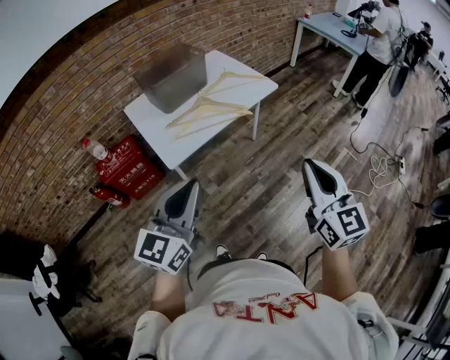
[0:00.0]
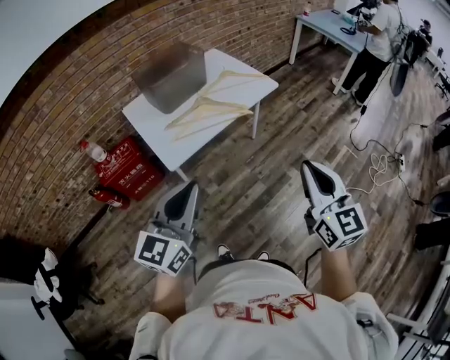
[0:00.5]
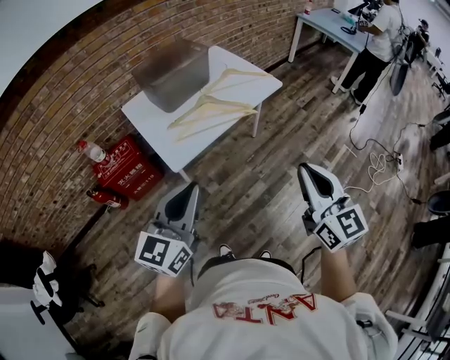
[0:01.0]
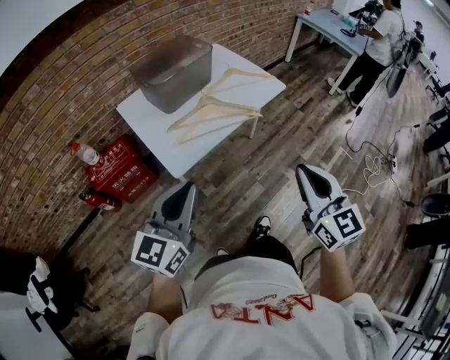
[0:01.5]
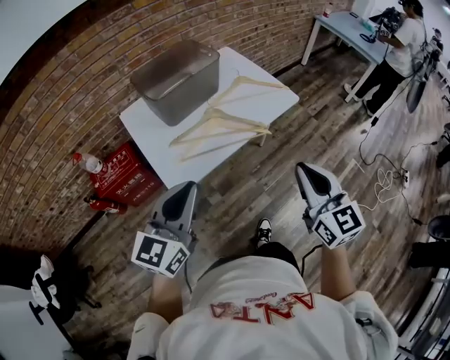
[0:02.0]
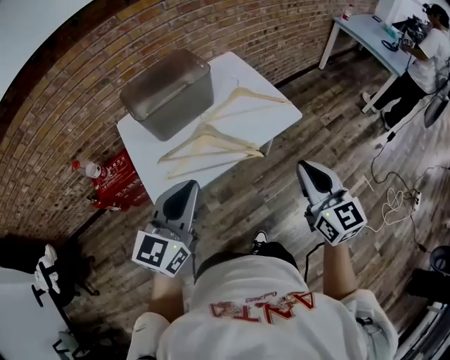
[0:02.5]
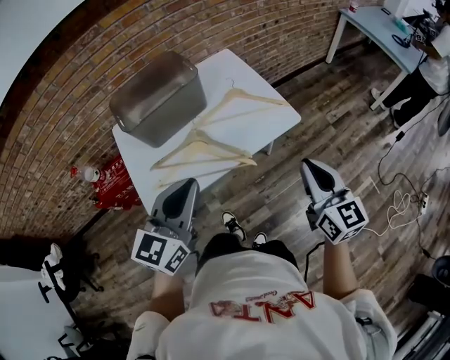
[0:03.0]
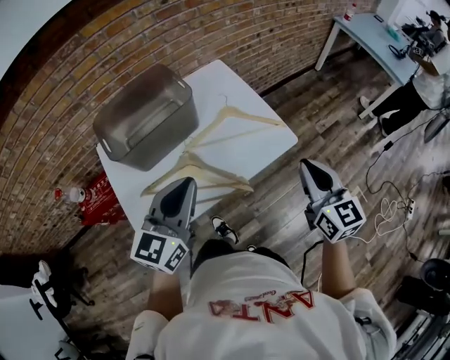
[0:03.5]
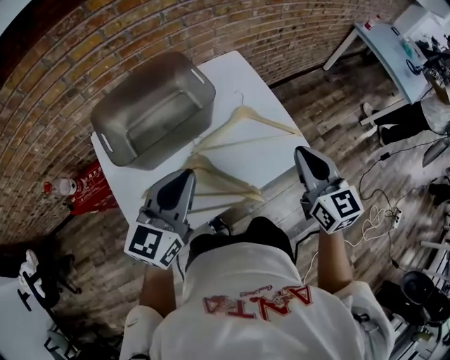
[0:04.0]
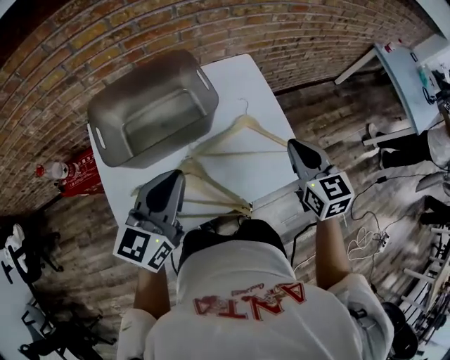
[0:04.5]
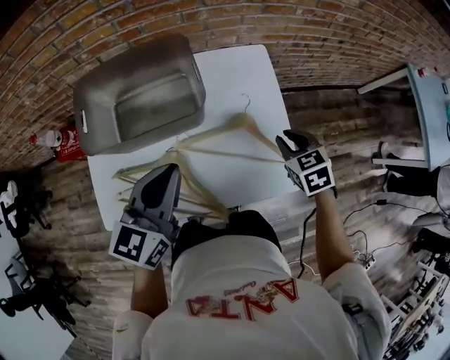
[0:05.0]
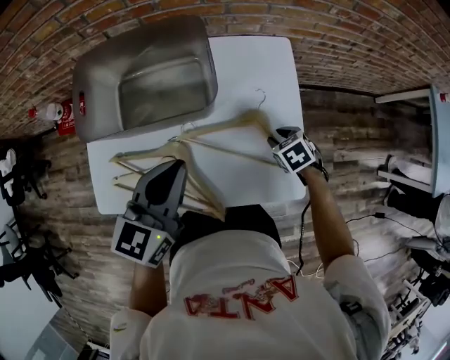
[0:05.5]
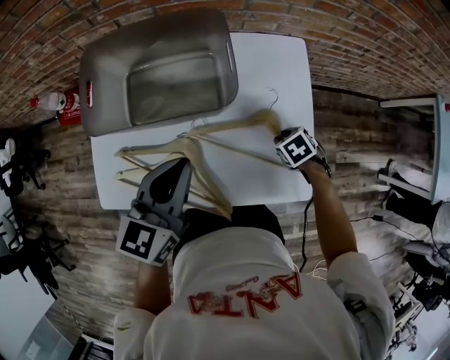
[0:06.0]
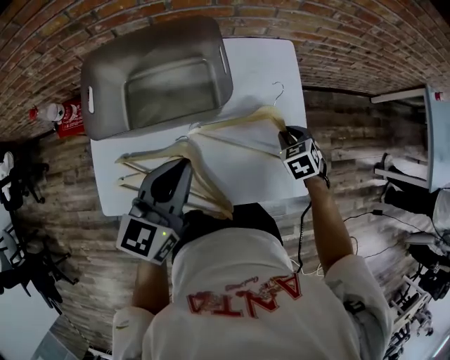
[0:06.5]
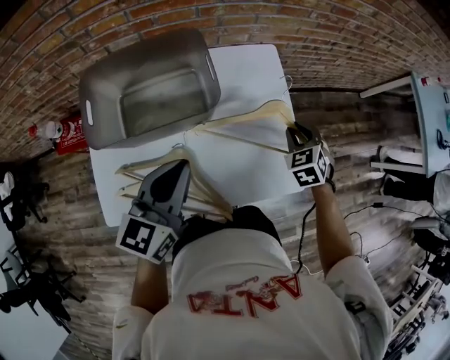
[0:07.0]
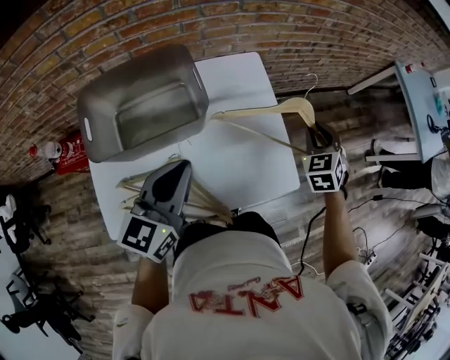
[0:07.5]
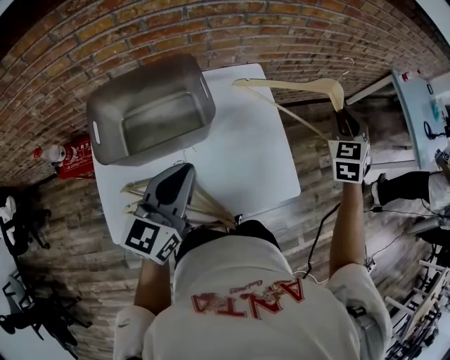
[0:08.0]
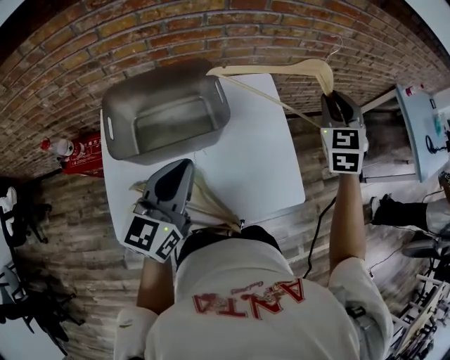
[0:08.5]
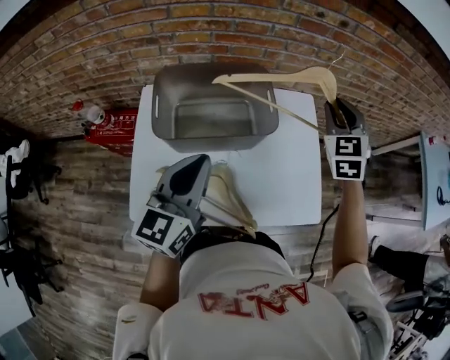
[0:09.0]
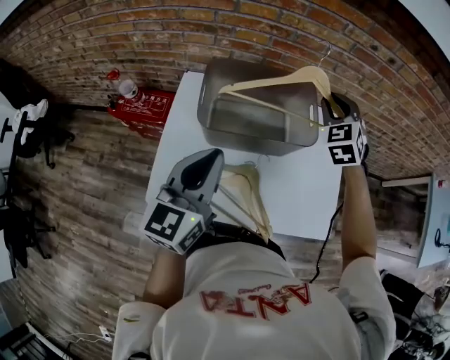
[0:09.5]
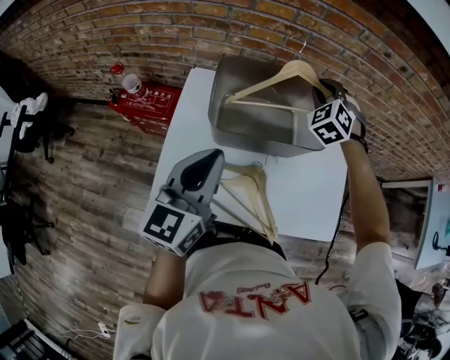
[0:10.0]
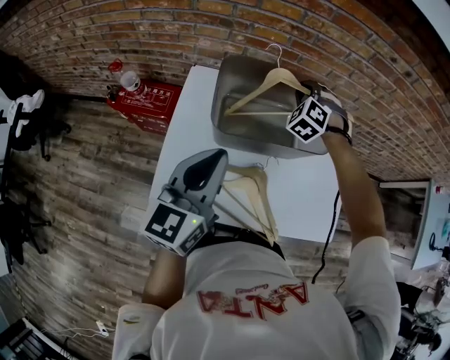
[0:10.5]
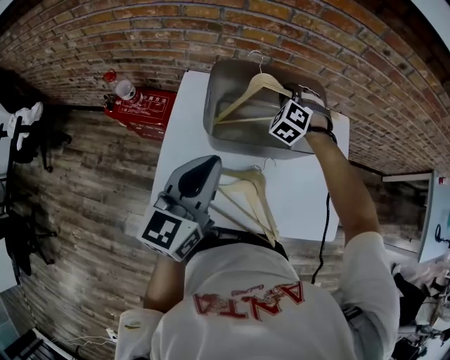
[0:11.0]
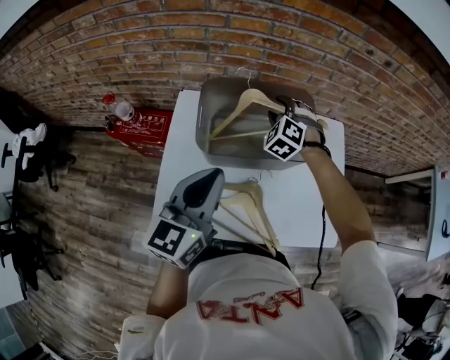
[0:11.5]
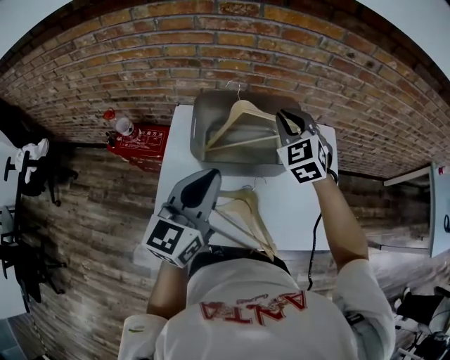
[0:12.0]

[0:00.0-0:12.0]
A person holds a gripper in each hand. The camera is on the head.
0:00.0 to 0:02.0: Both grippers move forward, some 20 cm.
0:02.0 to 0:04.0: Both grippers move forward, roughly 35 cm.
0:04.0 to 0:06.0: The left gripper moves roughly 10 cm, and turns by some 30 degrees; the right gripper shifts about 30 cm downward, tilts its fingers approximately 60 degrees downward, and opens up.
0:06.0 to 0:08.0: The right gripper goes about 30 cm upward, and tilts its fingers some 50 degrees upward. Meanwhile the left gripper shifts about 5 cm upward.
0:08.0 to 0:10.0: The left gripper ends up approximately 20 cm from where it was, and changes its angle by some 30 degrees; the right gripper ends up about 50 cm from where it was, and rotates around the line of its fingers by some 40 degrees, counterclockwise from behind.
0:10.0 to 0:12.0: The right gripper is displaced backward by about 5 cm, reaches some 10 cm downward, then returns, rotates approximately 30 degrees, and opens, then closes once more.

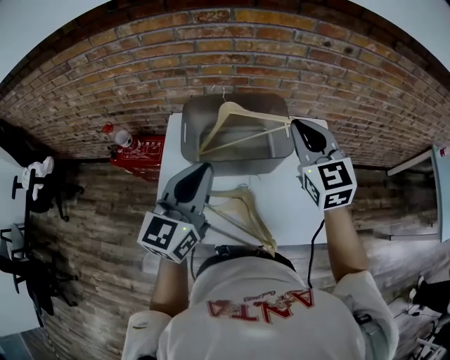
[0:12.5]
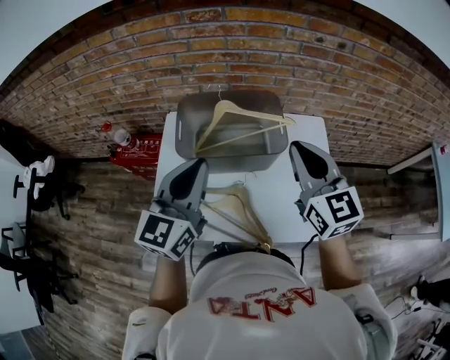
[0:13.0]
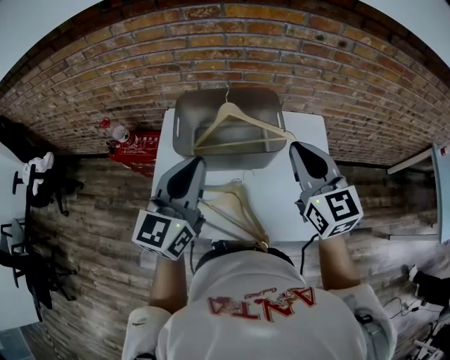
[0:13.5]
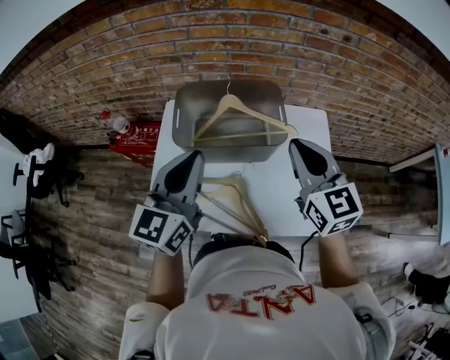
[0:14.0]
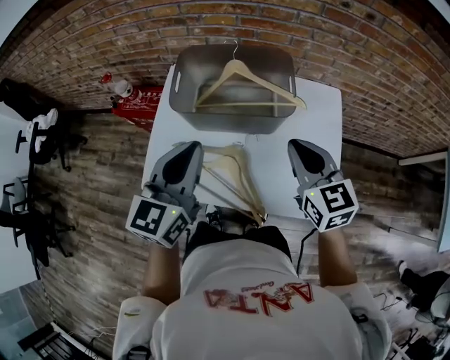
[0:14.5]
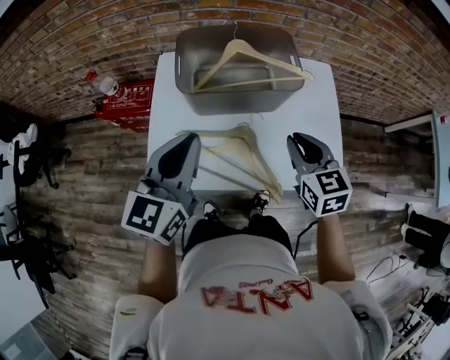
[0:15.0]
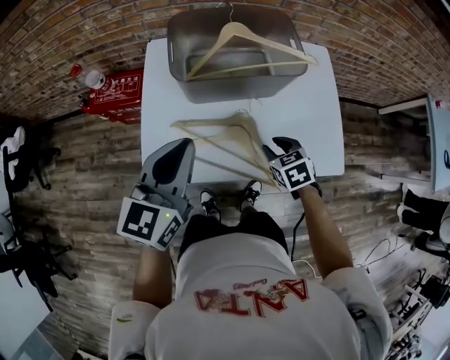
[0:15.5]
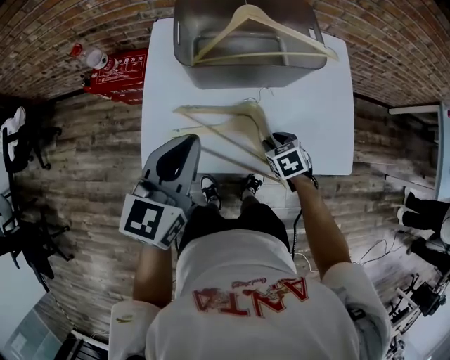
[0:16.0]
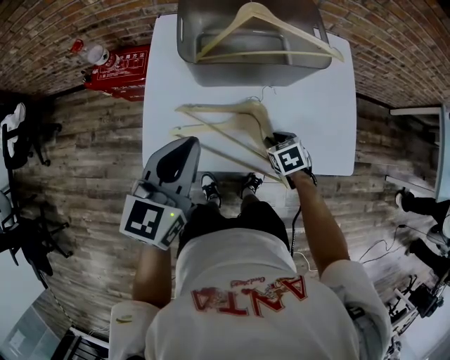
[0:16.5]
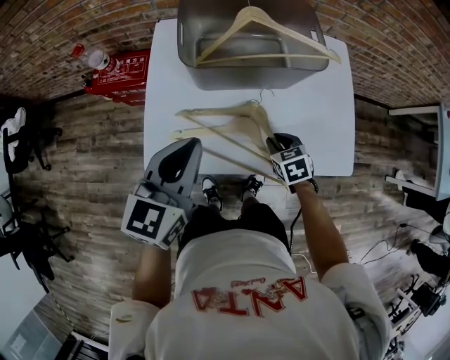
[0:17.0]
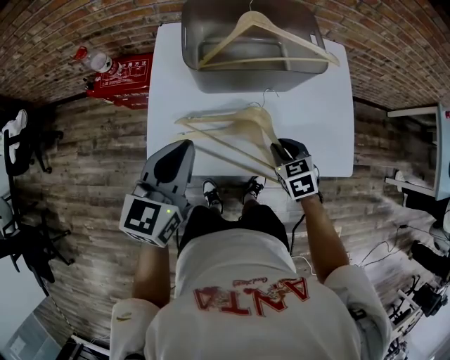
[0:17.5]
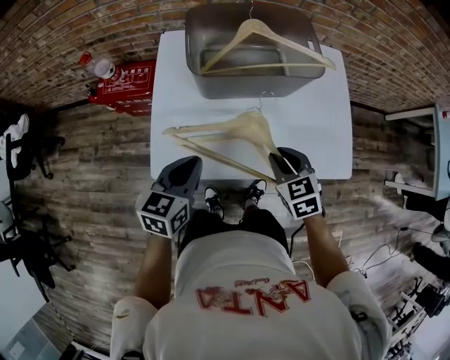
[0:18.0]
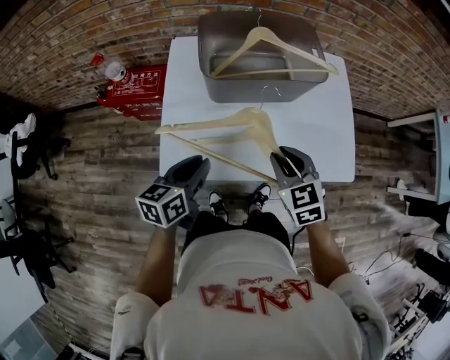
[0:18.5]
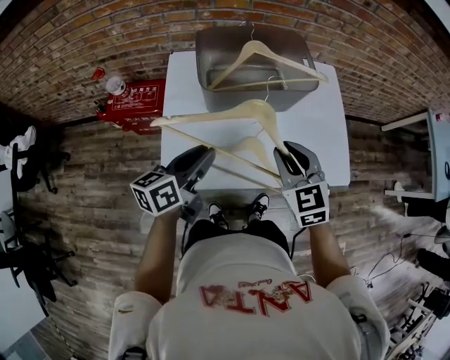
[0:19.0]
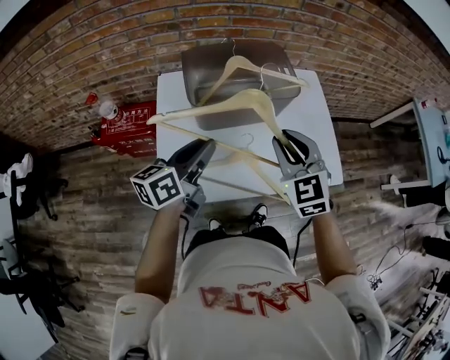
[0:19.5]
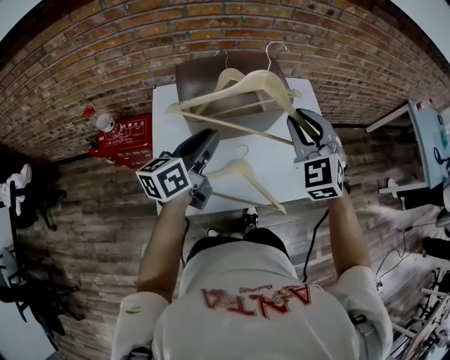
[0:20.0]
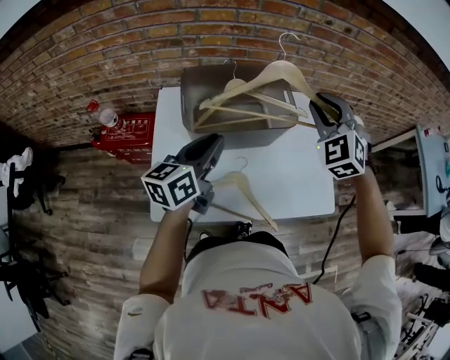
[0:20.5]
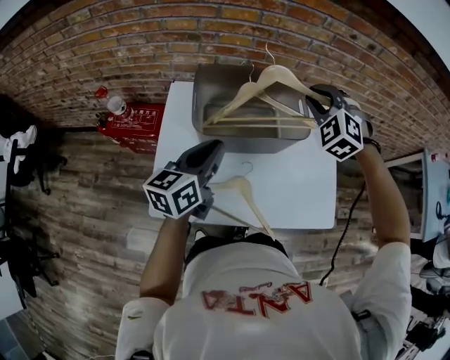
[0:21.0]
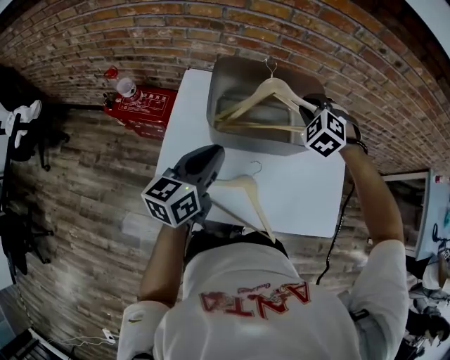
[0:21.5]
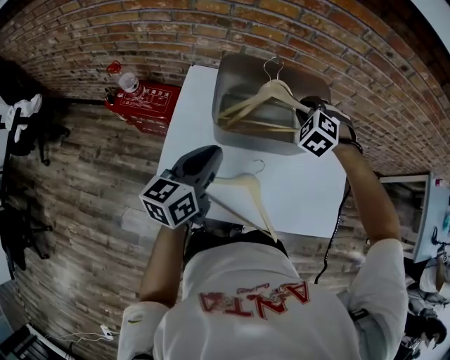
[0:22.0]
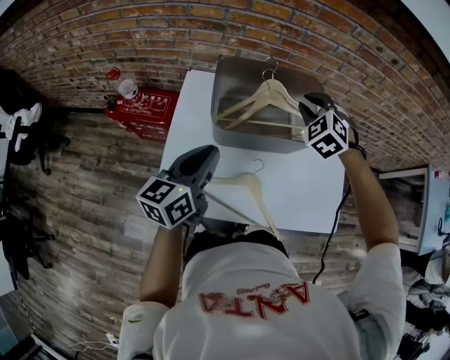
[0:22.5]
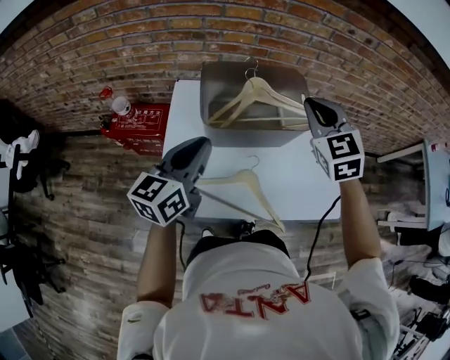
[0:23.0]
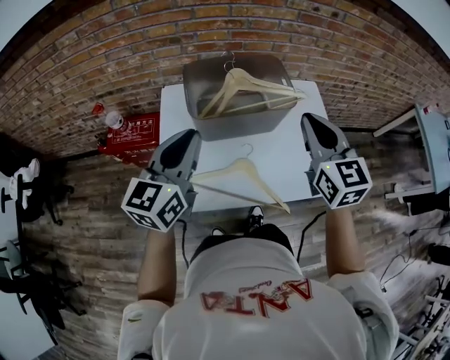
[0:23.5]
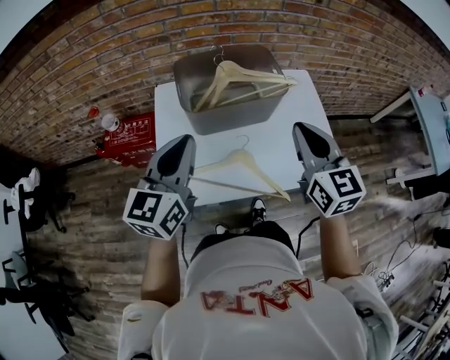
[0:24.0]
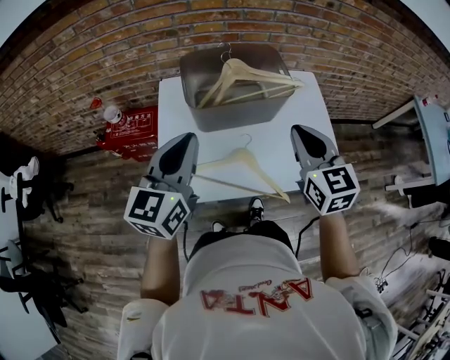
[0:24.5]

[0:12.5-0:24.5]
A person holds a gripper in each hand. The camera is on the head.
0:12.5 to 0:14.5: The left gripper ends up approximately 5 cm from where it was. Meanwhile the right gripper moves downward and backward, roughly 15 cm, and rotates roughly 20 degrees.
0:14.5 to 0:16.5: The left gripper heads to the left and downward, covering roughly 15 cm, while the right gripper travels downward by some 30 cm, tips its fingers downward by some 50 degrees, and opens.
0:16.5 to 0:18.5: The right gripper travels upward by about 20 cm, and changes its angle by some 30 degrees. The left gripper heads downward, covering some 10 cm, and swivels roughly 20 degrees.
0:18.5 to 0:20.5: Both grippers move forward and upward, approximately 25 cm. The right gripper changes its angle by about 40 degrees.
0:20.5 to 0:22.5: The right gripper shifts about 15 cm downward, to the left and forward; the left gripper goes roughly 5 cm to the left.
0:22.5 to 0:24.5: The right gripper travels backward by about 25 cm, and twists approximately 50 degrees clockwise, seen from behind; the left gripper is displaced upward and backward by approximately 10 cm, and swivels roughly 20 degrees.

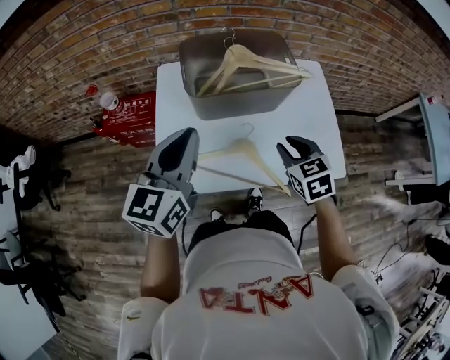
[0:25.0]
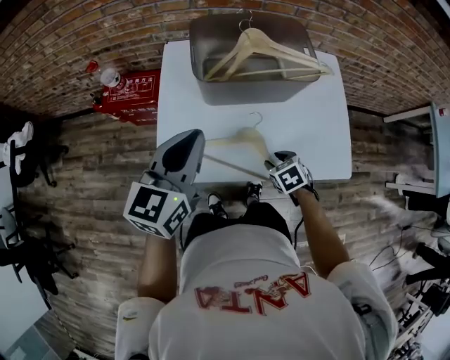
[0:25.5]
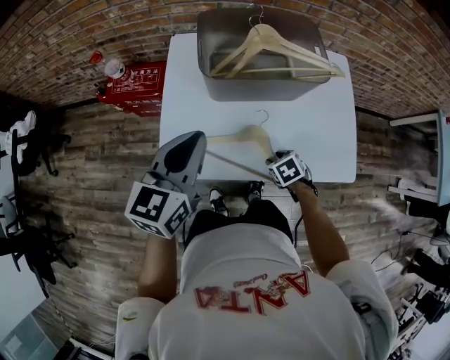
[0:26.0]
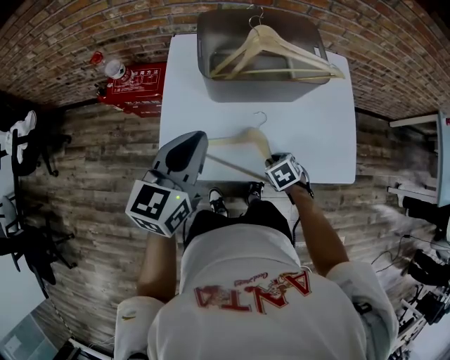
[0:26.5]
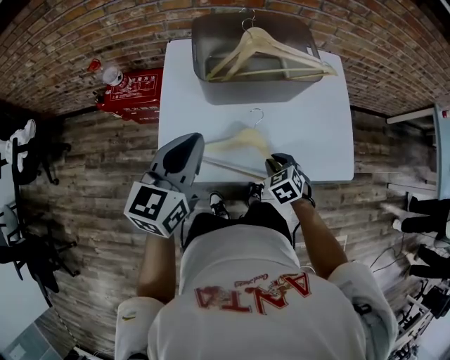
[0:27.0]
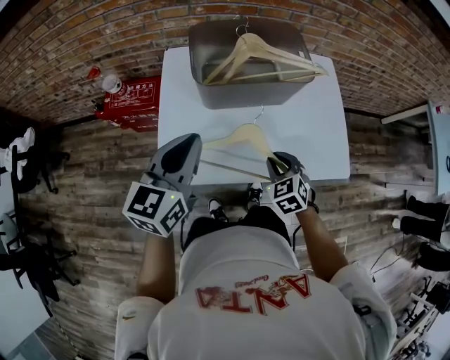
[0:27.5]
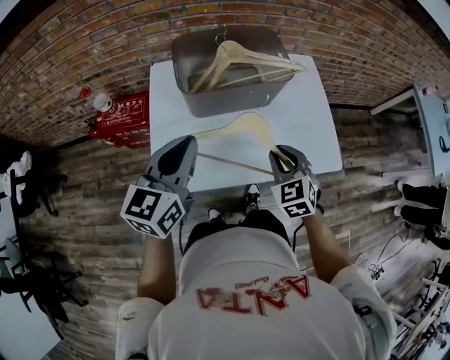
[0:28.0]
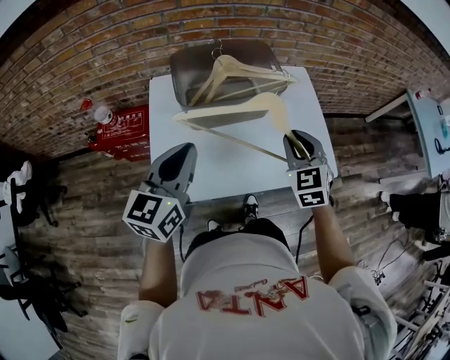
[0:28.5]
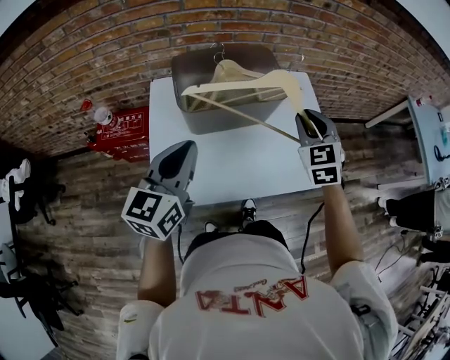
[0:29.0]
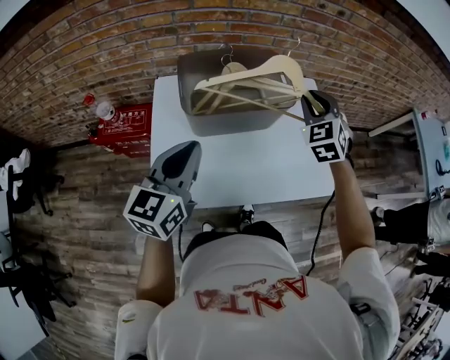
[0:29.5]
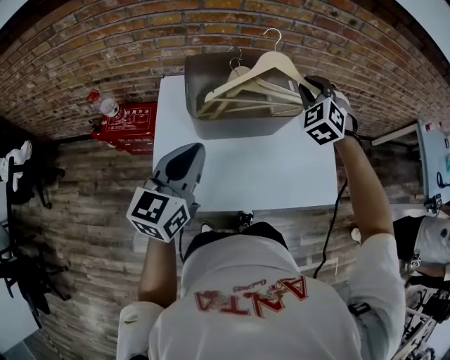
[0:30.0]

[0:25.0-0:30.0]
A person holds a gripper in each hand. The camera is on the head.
0:25.0 to 0:27.5: The right gripper moves downward, about 10 cm. The left gripper changes place by about 5 cm.
0:27.5 to 0:30.0: The right gripper is displaced forward and upward by roughly 35 cm, and rotates about 30 degrees. Meanwhile the left gripper travels forward by some 5 cm.
